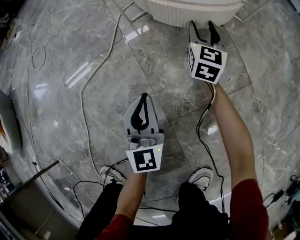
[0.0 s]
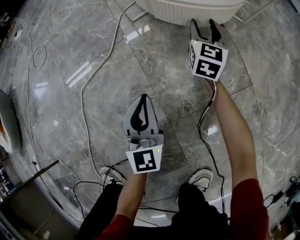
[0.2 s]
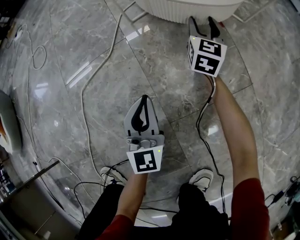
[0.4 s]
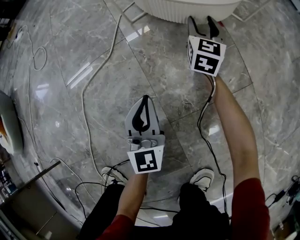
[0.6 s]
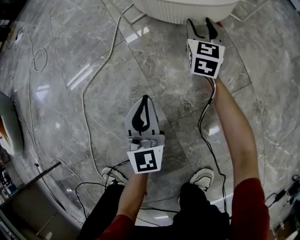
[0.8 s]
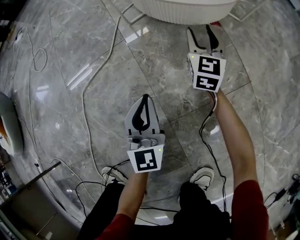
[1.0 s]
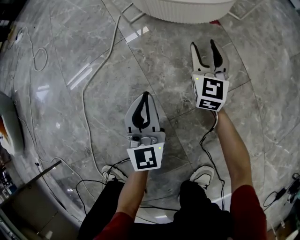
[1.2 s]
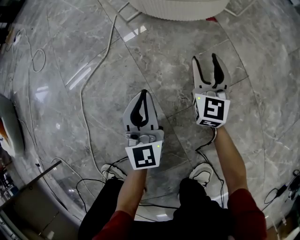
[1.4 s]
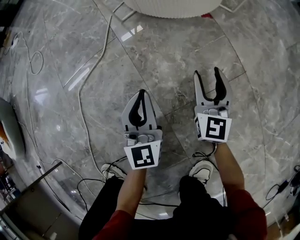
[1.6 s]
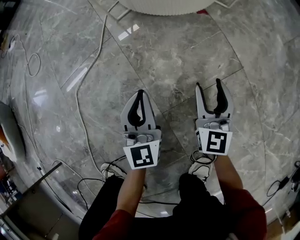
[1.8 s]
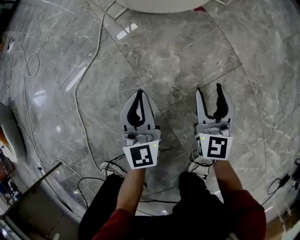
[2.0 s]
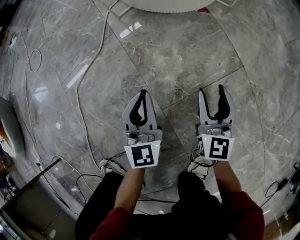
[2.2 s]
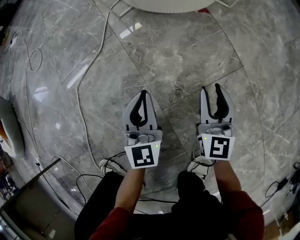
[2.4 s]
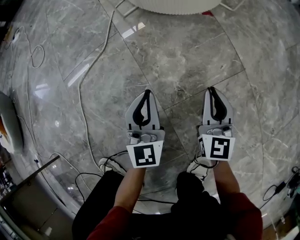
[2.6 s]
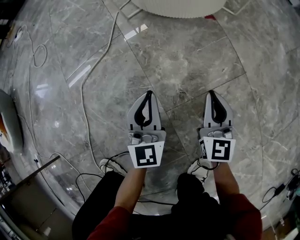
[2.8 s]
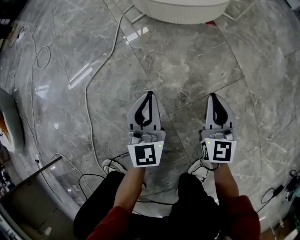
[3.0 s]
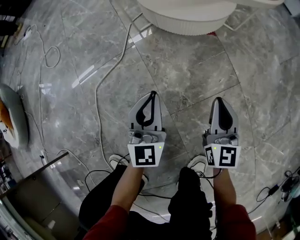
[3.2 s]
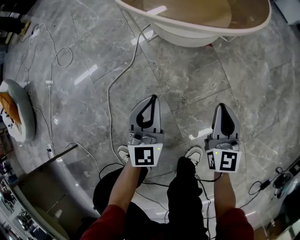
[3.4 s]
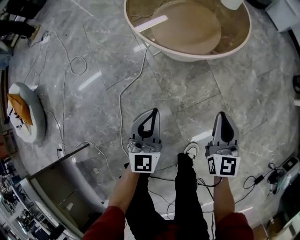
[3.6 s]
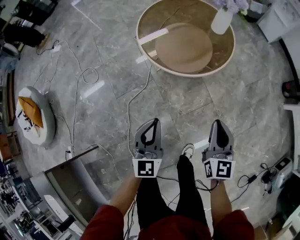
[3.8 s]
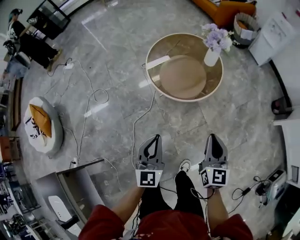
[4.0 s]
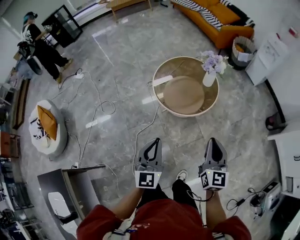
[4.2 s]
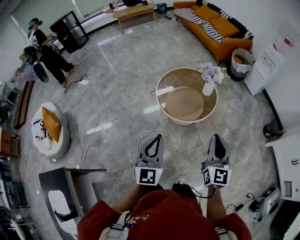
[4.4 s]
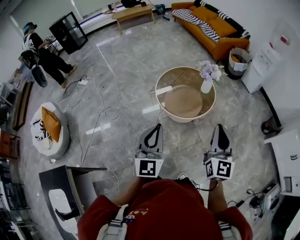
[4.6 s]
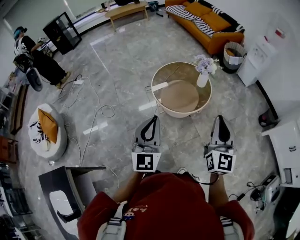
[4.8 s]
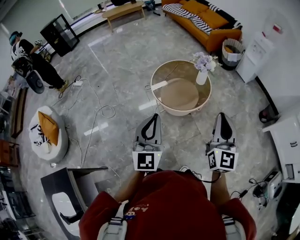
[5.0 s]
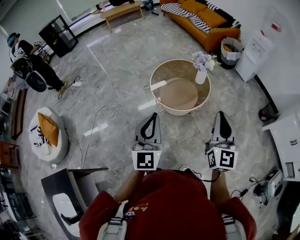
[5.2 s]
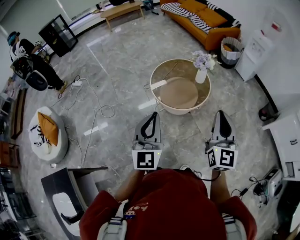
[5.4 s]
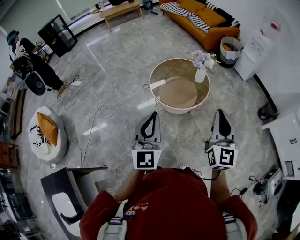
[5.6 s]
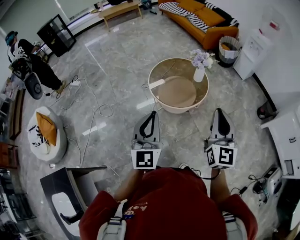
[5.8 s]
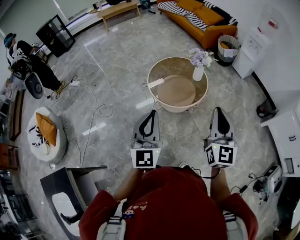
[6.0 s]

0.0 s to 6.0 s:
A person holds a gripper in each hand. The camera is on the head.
0.0 to 1.6 s: The right gripper travels backward by some 20 cm.
1.6 to 3.0 s: The right gripper travels backward by roughly 5 cm, and closes up.
3.0 to 4.4 s: The two grippers go approximately 80 cm upward.
4.4 to 6.0 s: Both grippers move upward, about 10 cm.

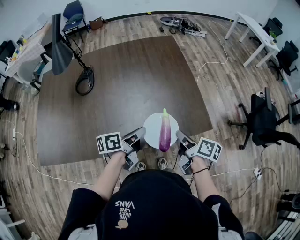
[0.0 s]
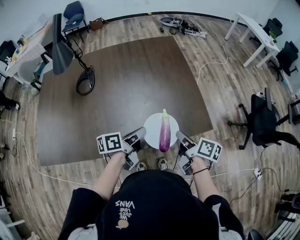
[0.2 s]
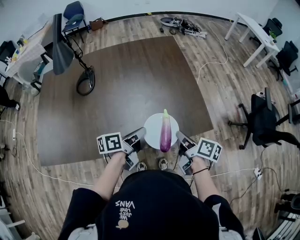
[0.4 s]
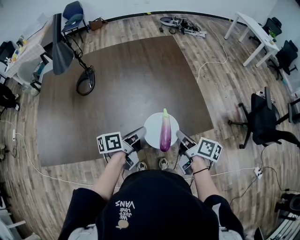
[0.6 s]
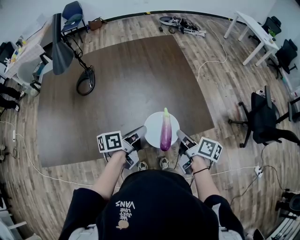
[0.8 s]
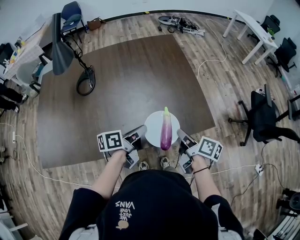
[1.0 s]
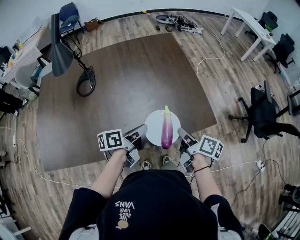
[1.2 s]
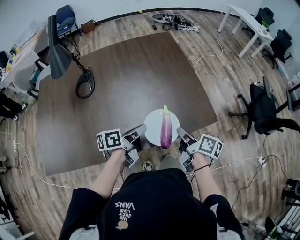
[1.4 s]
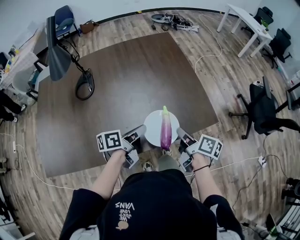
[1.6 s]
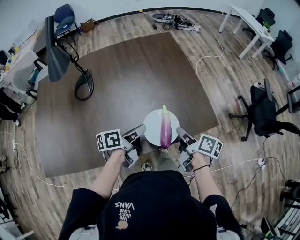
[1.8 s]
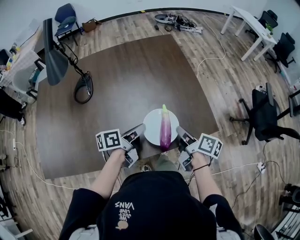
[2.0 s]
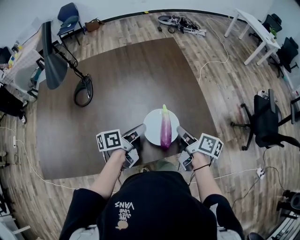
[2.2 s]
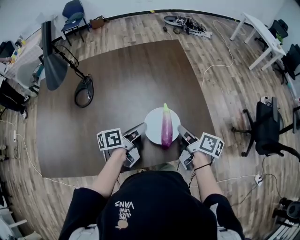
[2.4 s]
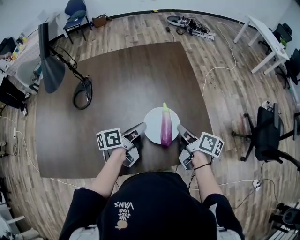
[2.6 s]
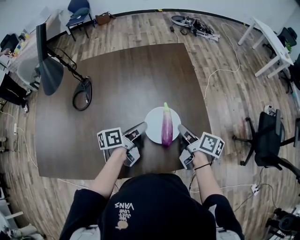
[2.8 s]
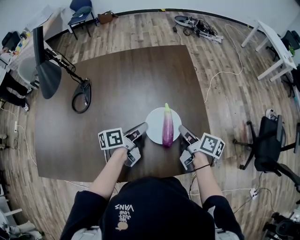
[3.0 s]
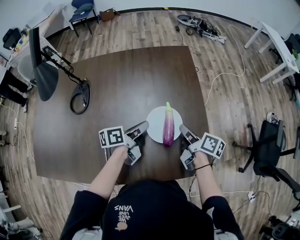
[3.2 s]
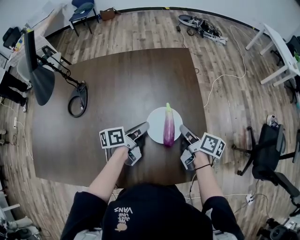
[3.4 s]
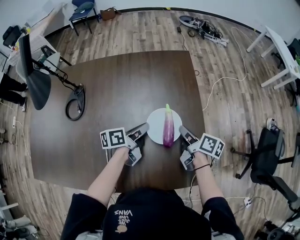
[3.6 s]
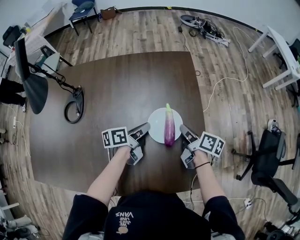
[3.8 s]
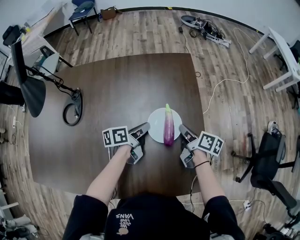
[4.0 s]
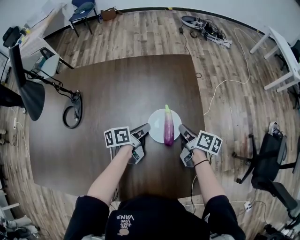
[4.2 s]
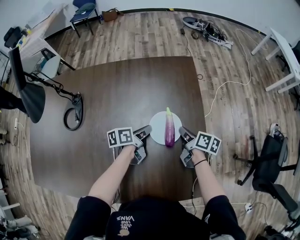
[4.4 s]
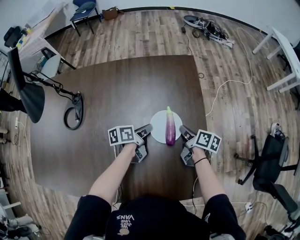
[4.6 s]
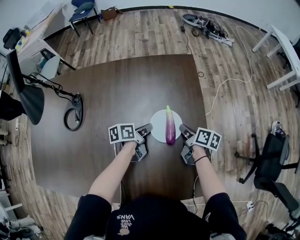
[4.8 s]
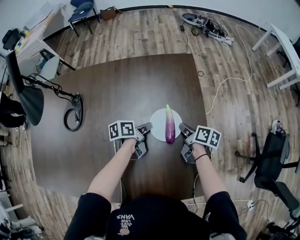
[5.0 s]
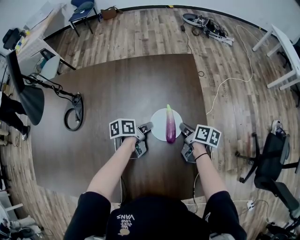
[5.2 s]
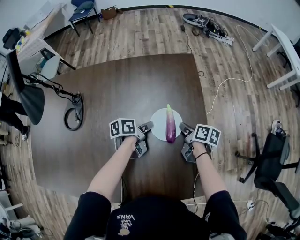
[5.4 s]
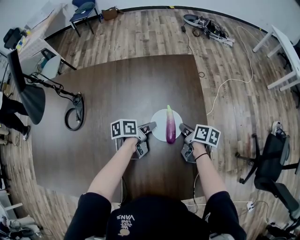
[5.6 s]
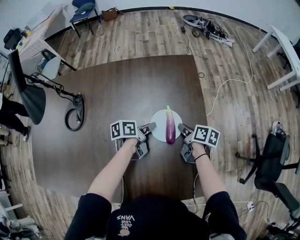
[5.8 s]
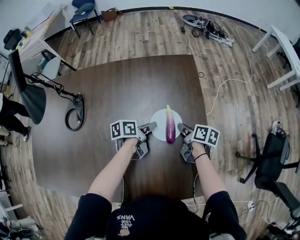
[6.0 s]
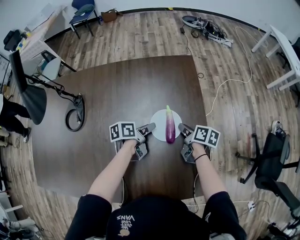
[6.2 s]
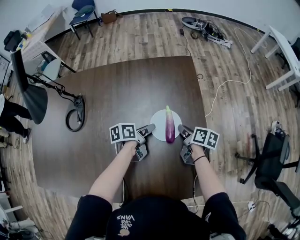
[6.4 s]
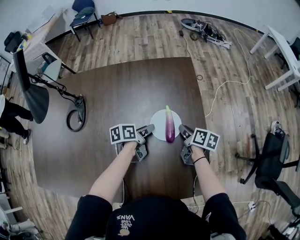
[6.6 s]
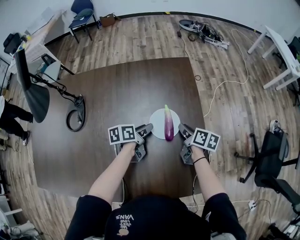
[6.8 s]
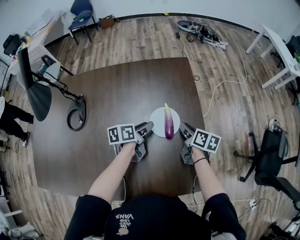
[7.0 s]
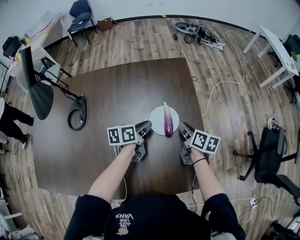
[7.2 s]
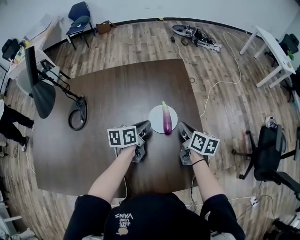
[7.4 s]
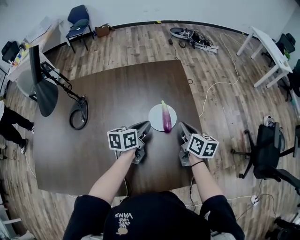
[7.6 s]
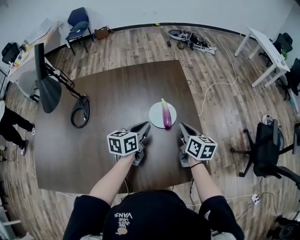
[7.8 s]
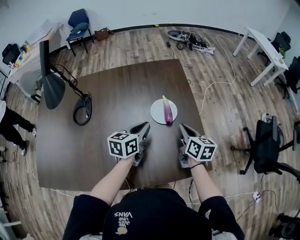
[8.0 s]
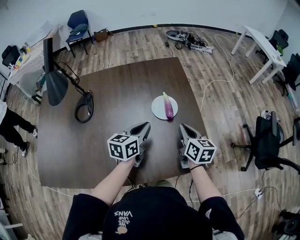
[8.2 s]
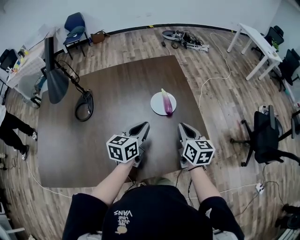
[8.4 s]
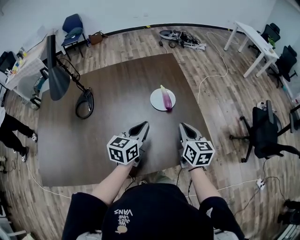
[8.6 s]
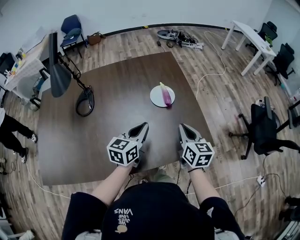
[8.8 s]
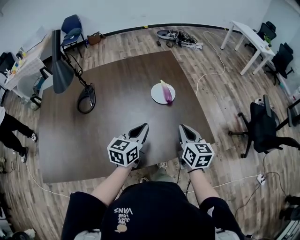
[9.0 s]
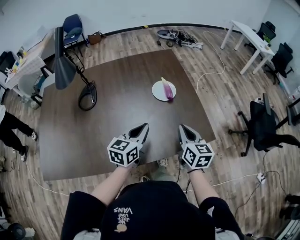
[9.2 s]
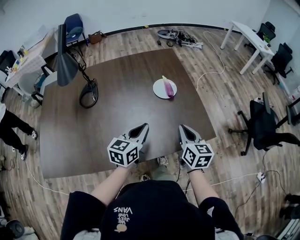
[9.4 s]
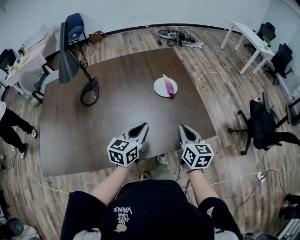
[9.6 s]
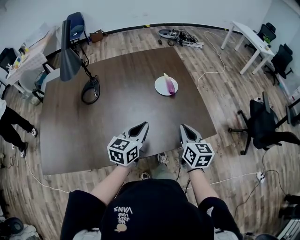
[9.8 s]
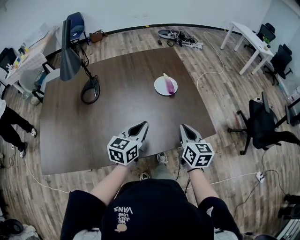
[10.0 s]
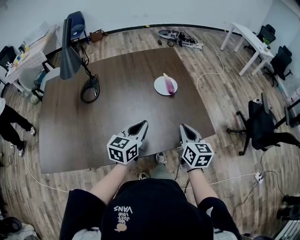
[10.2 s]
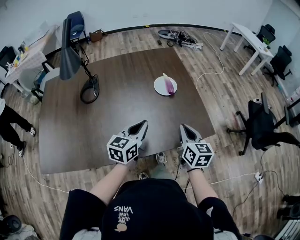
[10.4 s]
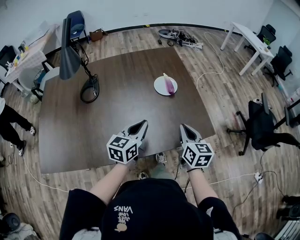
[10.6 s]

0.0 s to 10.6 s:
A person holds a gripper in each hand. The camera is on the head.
0.0 to 1.6 s: The grippers make only small movements.
1.6 to 3.0 s: The two grippers go some 20 cm forward.
3.0 to 4.6 s: The grippers both shift forward and downward by approximately 20 cm.
4.6 to 6.0 s: The left gripper opens its fingers.
6.0 to 7.6 s: The two grippers go about 15 cm upward and backward. The right gripper rotates approximately 30 degrees, while the left gripper turns by roughly 30 degrees, and closes.
7.6 to 9.0 s: Both grippers travel together backward, roughly 25 cm. The left gripper rotates approximately 30 degrees.
9.0 to 10.6 s: Both grippers travel together backward, approximately 5 cm.

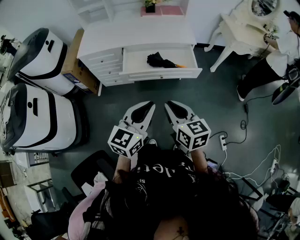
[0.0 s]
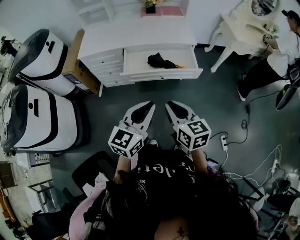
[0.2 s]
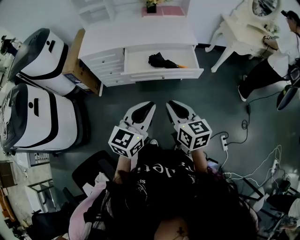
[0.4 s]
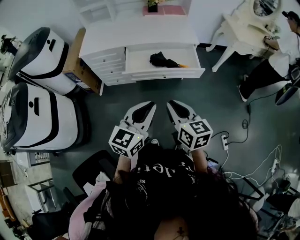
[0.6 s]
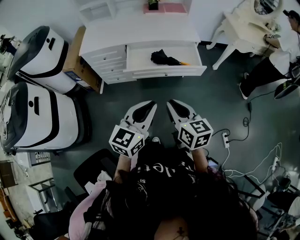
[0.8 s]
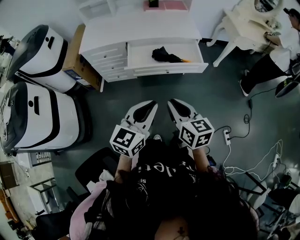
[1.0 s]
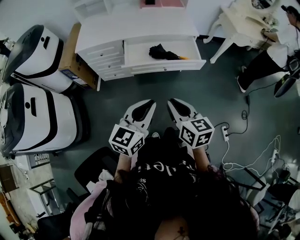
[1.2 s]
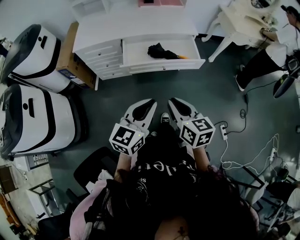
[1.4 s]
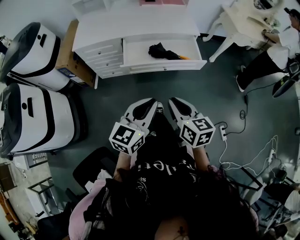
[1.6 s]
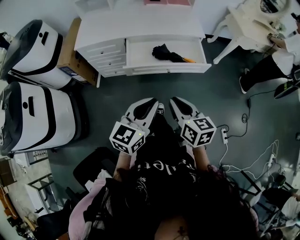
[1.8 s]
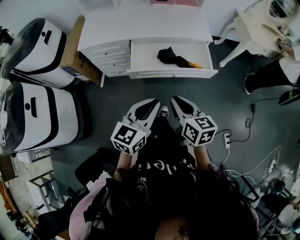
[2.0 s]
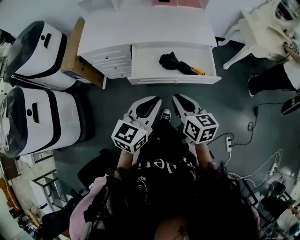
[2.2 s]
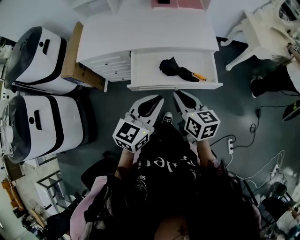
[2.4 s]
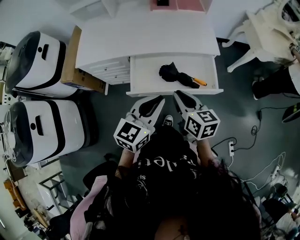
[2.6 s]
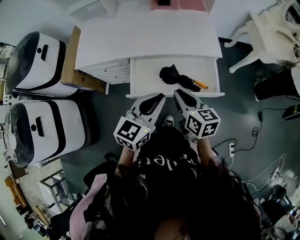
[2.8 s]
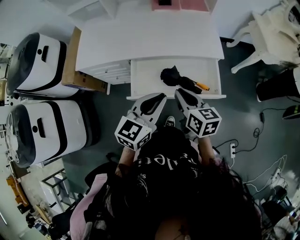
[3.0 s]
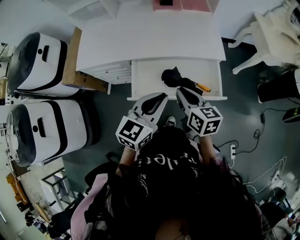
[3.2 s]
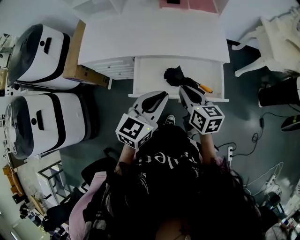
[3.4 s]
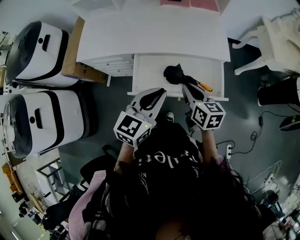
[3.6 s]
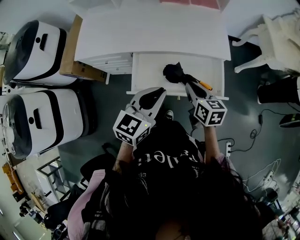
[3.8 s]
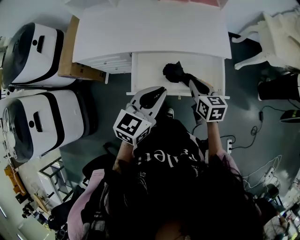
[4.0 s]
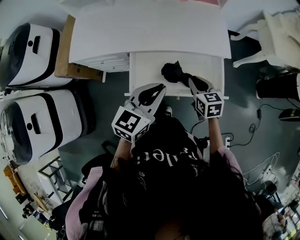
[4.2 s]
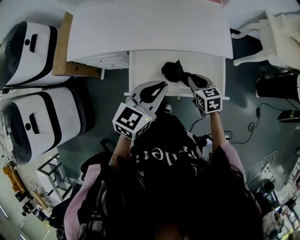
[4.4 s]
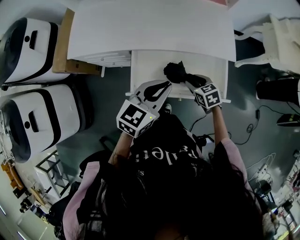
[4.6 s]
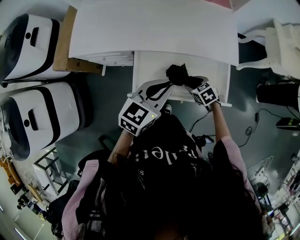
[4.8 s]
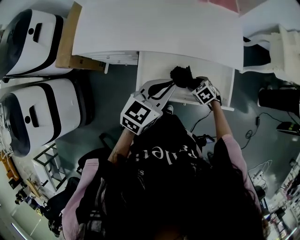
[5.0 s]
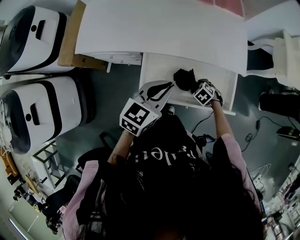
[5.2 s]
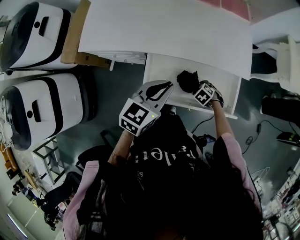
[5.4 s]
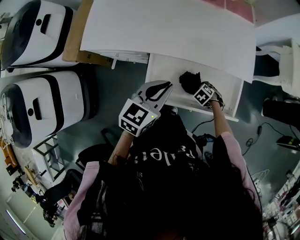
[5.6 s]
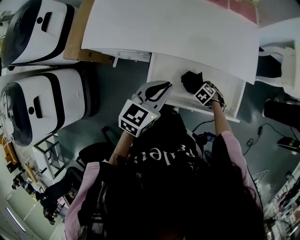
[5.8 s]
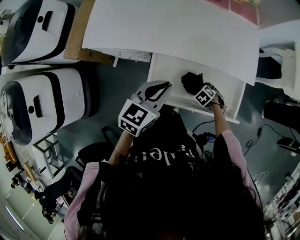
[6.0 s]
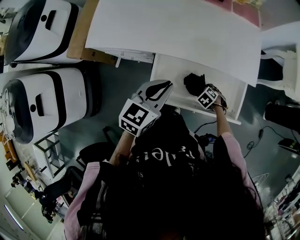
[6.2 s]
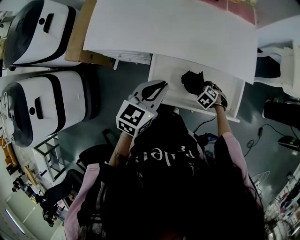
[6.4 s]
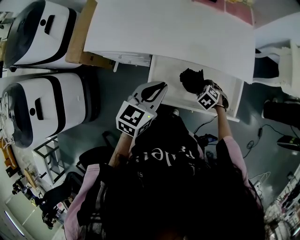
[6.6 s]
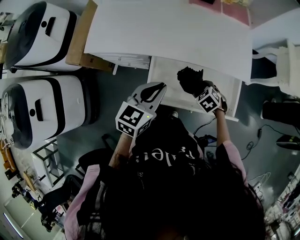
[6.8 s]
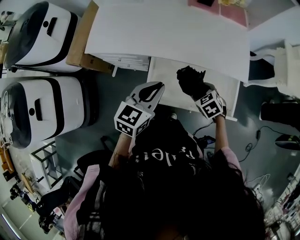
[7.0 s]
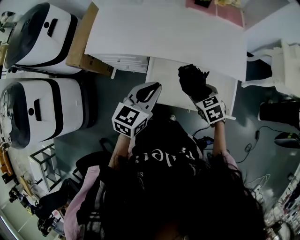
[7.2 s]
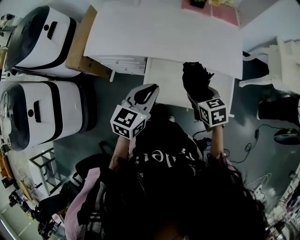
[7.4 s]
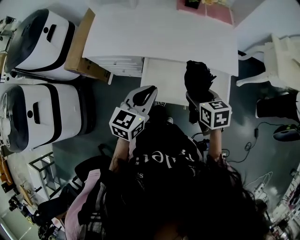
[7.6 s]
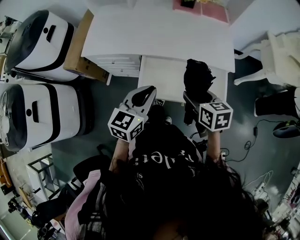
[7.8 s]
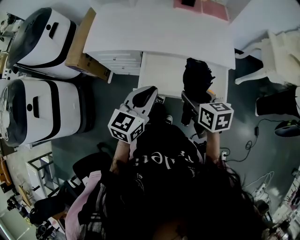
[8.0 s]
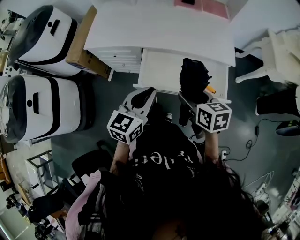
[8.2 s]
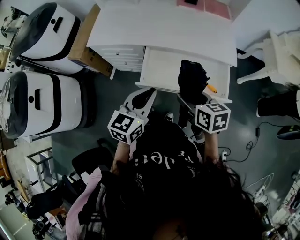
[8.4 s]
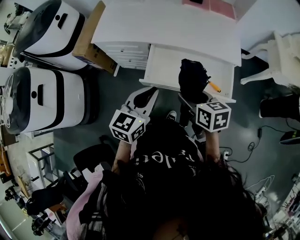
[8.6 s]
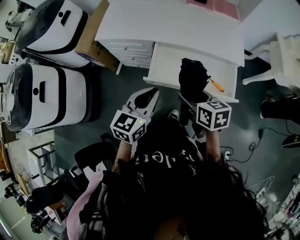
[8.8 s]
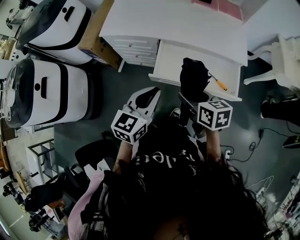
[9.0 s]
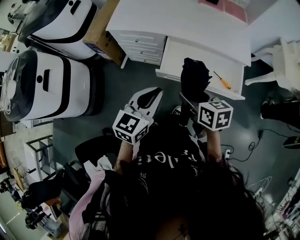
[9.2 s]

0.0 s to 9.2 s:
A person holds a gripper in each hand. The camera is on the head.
0.0 to 1.6 s: The left gripper ends up some 5 cm from where it was.
1.6 to 3.0 s: Both grippers travel together forward, approximately 30 cm.
3.0 to 4.6 s: The right gripper is displaced downward and forward by some 20 cm, rotates roughly 40 degrees, and opens; the left gripper shifts roughly 10 cm forward and downward.
4.6 to 6.2 s: The left gripper changes place by roughly 10 cm. The right gripper shifts some 15 cm downward, tips its fingers downward by about 30 degrees, and opens up.
6.2 to 7.6 s: The right gripper heads upward, covering approximately 30 cm, and points its fingers approximately 40 degrees further upward, while the left gripper ends up approximately 10 cm from where it was.
7.6 to 9.2 s: The grippers both shift backward and to the left by about 20 cm.
